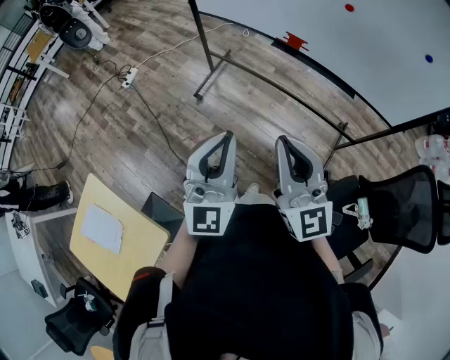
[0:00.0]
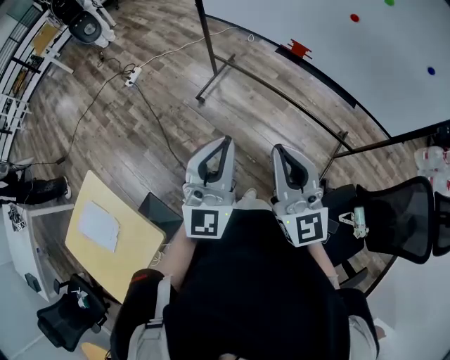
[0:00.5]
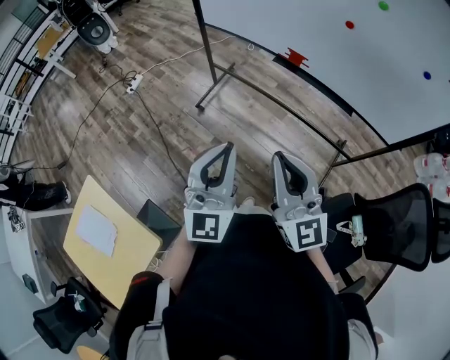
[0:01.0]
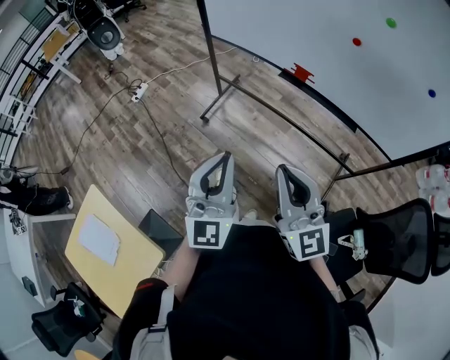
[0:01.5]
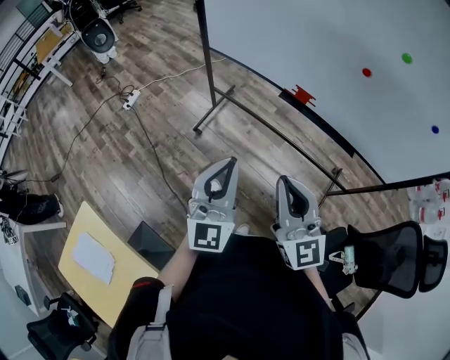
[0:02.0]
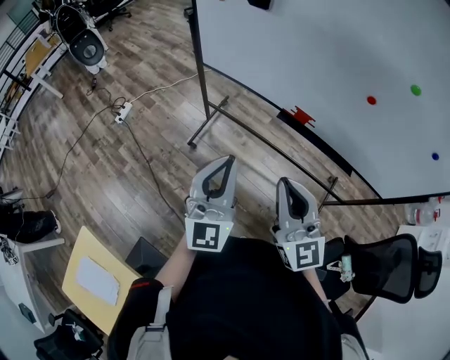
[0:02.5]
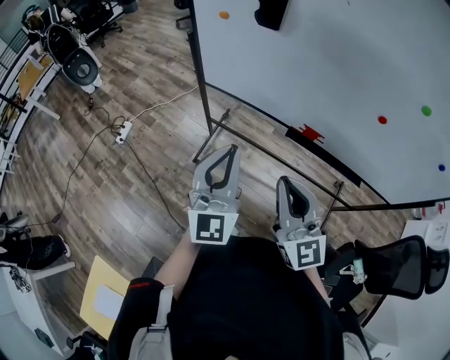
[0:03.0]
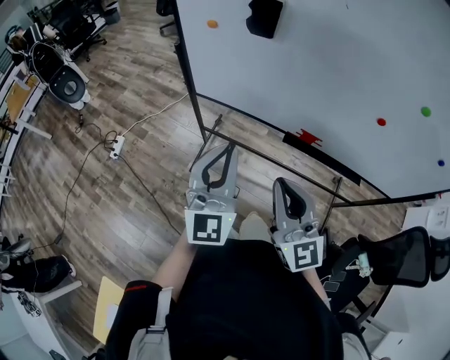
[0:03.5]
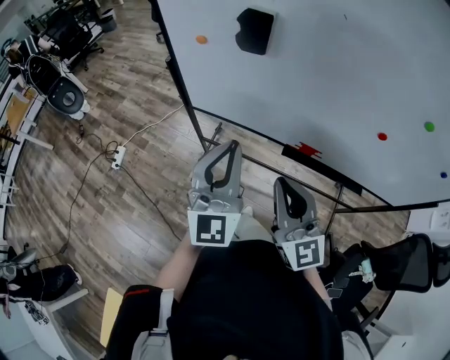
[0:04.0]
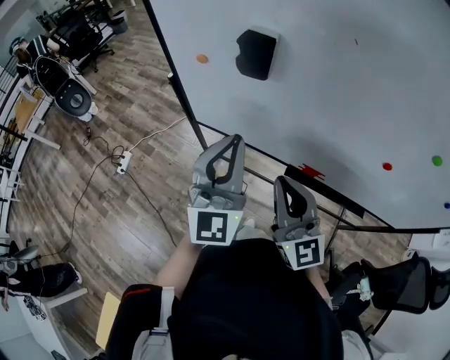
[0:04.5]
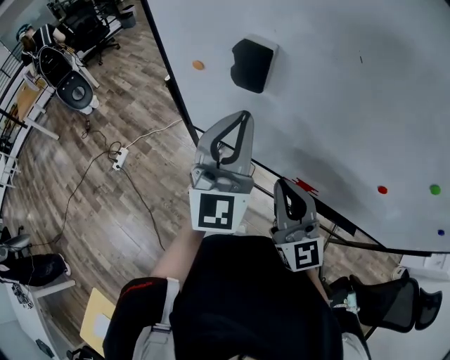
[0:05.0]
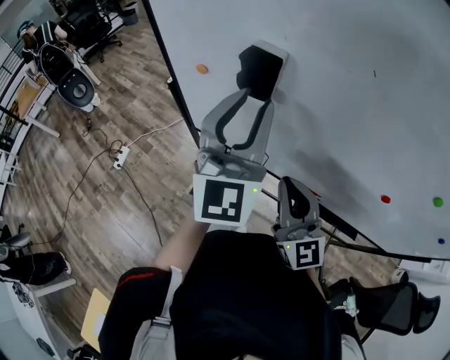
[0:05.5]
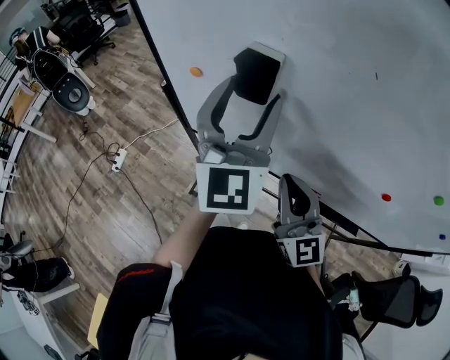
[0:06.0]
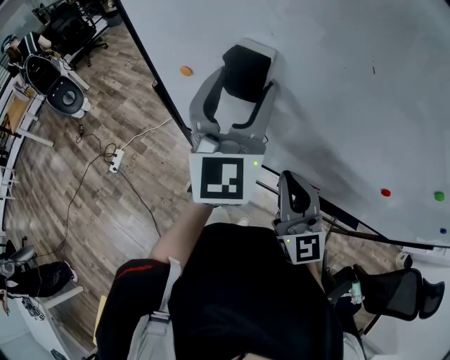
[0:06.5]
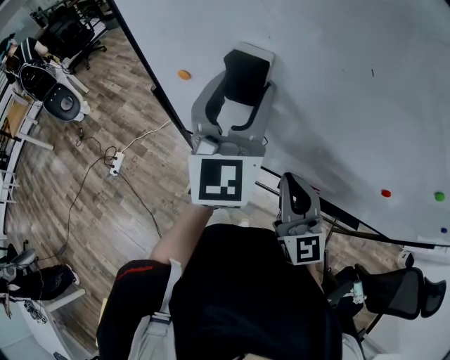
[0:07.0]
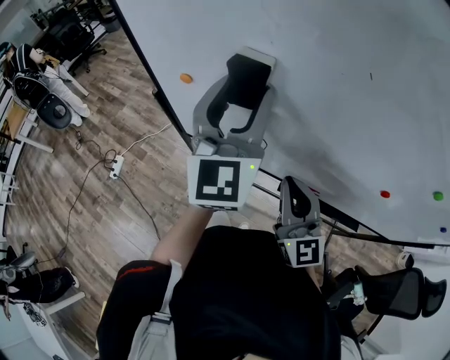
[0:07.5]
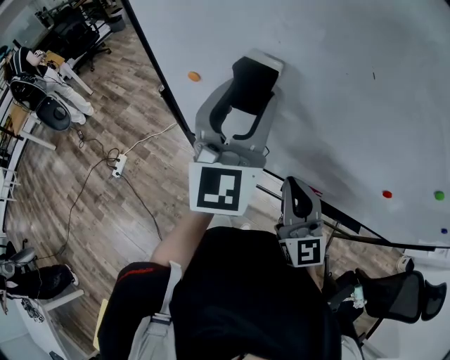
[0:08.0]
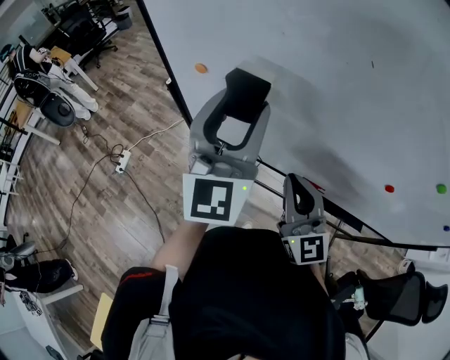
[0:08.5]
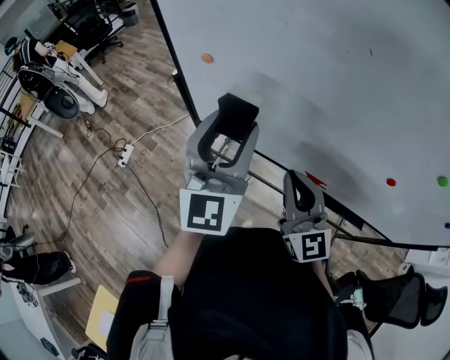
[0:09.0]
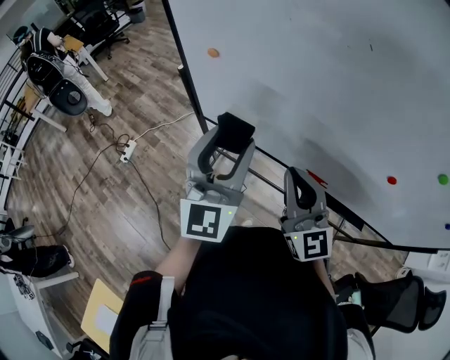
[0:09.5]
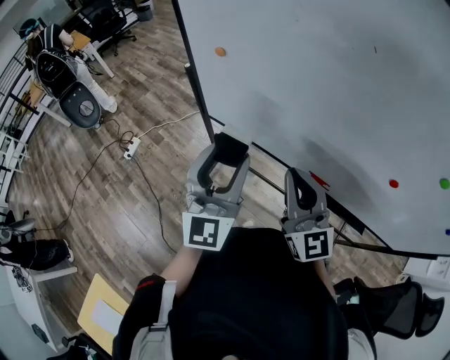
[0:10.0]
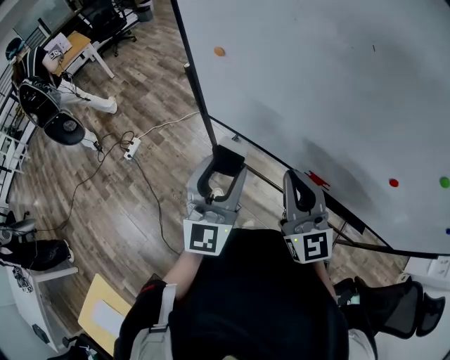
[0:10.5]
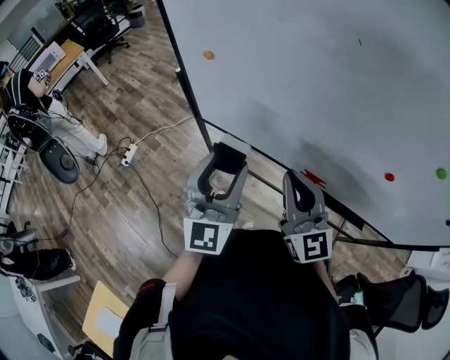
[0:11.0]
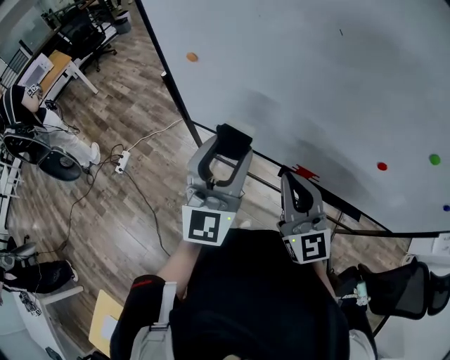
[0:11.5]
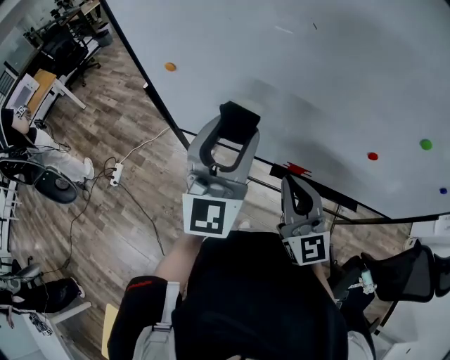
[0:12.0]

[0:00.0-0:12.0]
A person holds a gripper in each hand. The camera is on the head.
0:00.0 to 0:02.0: Both grippers travel together forward, approximately 10 cm.
0:02.0 to 0:04.0: Both grippers travel together forward, about 30 cm.
0:04.0 to 0:06.0: The right gripper shifts some 15 cm forward, while the left gripper travels forward and upward by some 20 cm, and opens its fingers.
0:06.0 to 0:08.0: The grippers move only a little.
0:08.0 to 0:10.0: The left gripper goes approximately 20 cm backward, downward and to the left. Meanwhile the right gripper is displaced backward by some 5 cm.
0:10.0 to 0:12.0: The left gripper shifts approximately 10 cm to the right and upward. The right gripper shifts some 5 cm to the right.

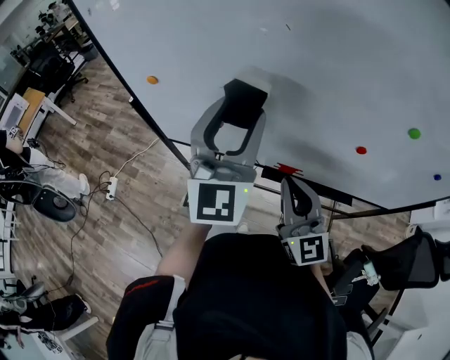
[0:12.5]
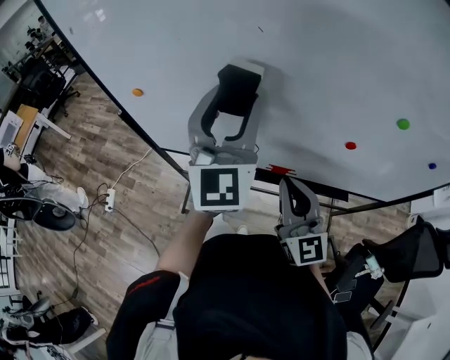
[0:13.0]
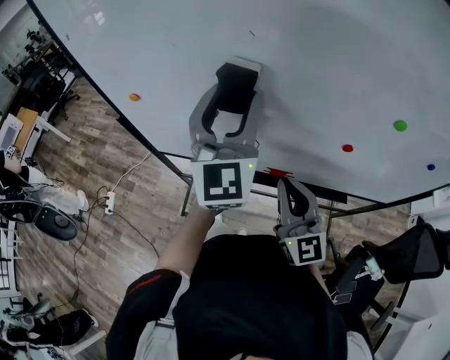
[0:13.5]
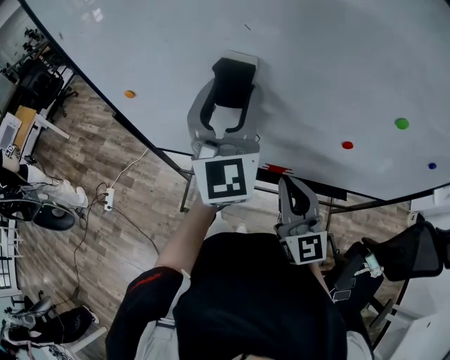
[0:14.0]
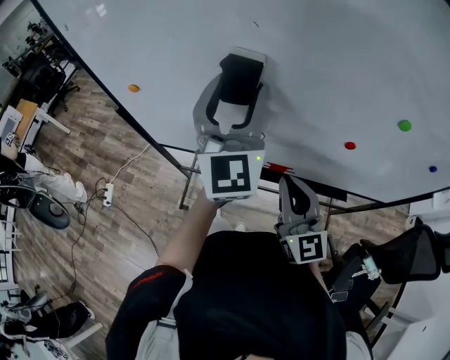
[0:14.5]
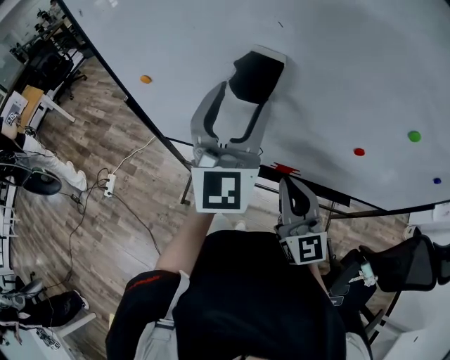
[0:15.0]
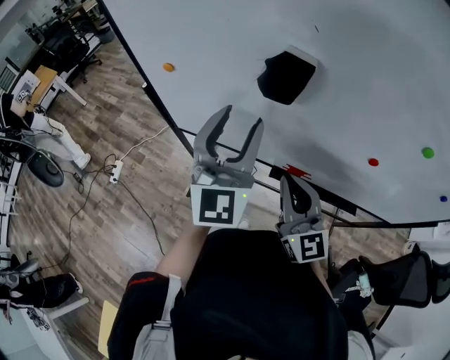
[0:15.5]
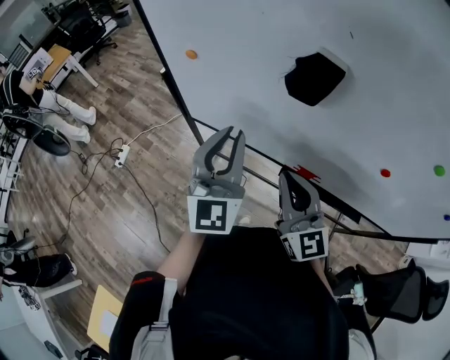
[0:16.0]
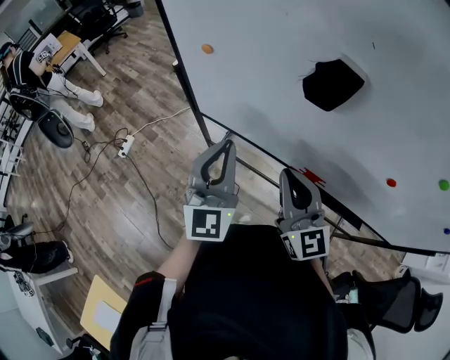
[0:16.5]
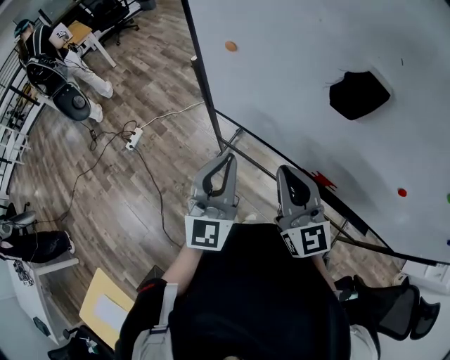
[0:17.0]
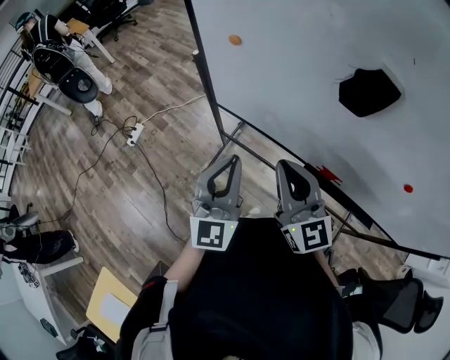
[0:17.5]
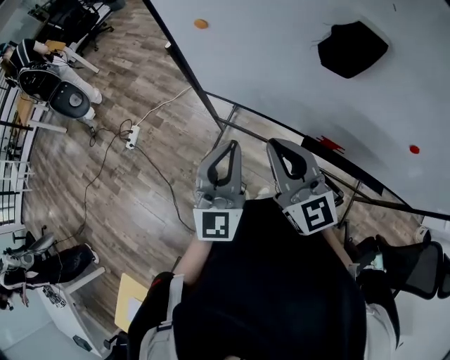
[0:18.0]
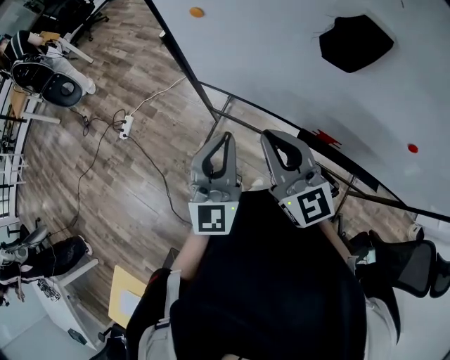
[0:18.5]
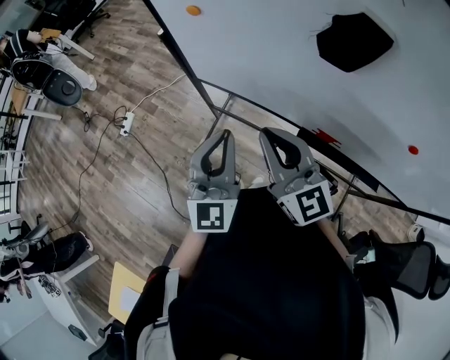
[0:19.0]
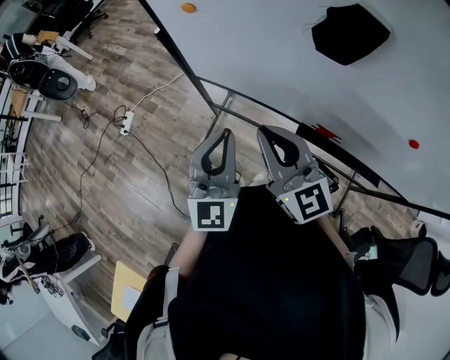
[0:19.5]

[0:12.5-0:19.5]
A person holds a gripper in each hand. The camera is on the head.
0:12.5 to 0:14.5: The left gripper heads forward, covering about 5 cm.
0:14.5 to 0:16.0: The left gripper travels to the left, downward and backward by about 20 cm, and closes, while the right gripper shifts roughly 10 cm to the left.
0:16.0 to 0:17.5: The right gripper moves to the left, some 10 cm, while the left gripper travels to the left and downward by some 10 cm.
0:17.5 to 0:19.5: The grippers make only small movements.

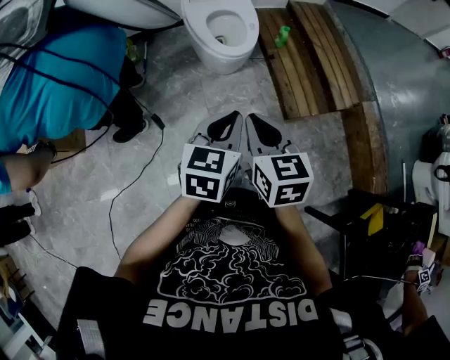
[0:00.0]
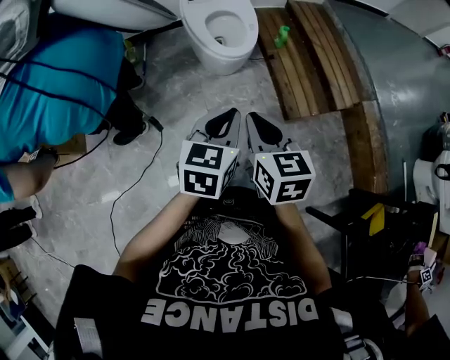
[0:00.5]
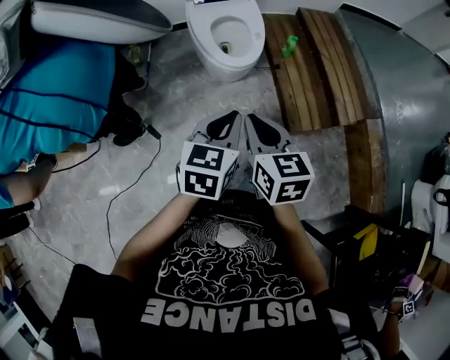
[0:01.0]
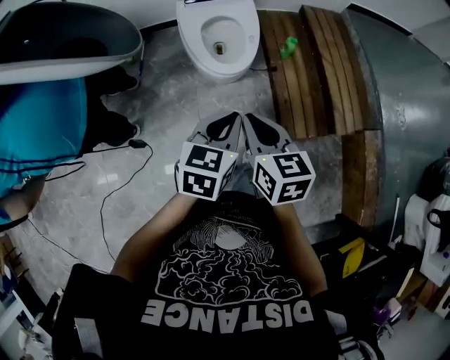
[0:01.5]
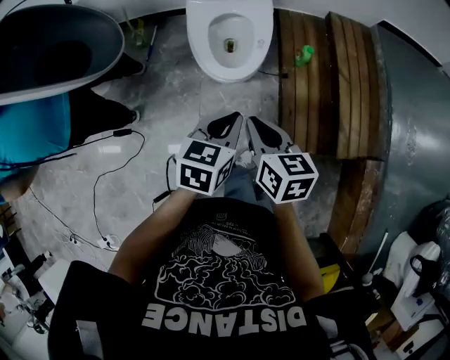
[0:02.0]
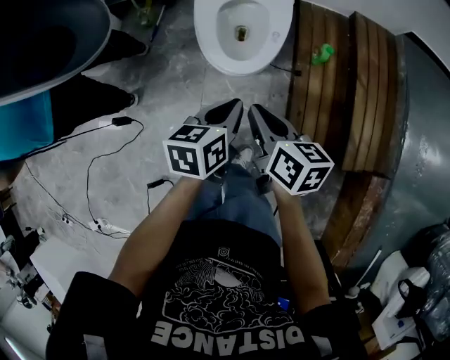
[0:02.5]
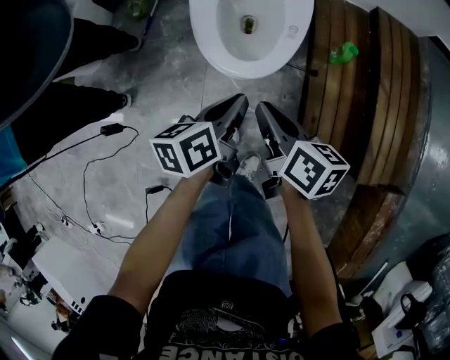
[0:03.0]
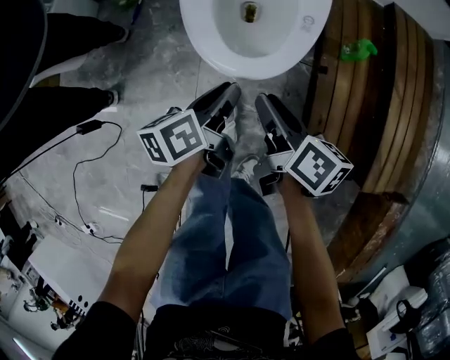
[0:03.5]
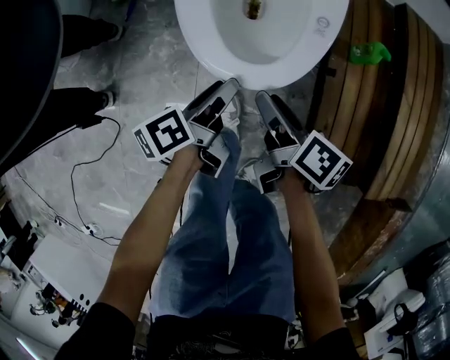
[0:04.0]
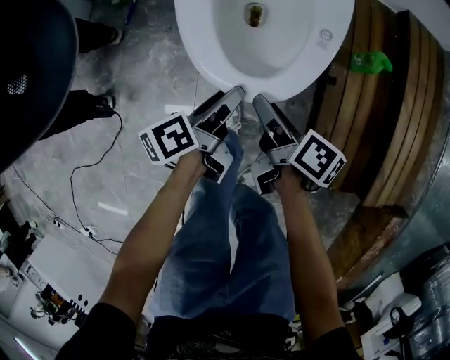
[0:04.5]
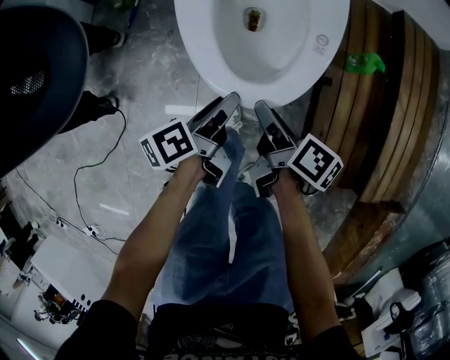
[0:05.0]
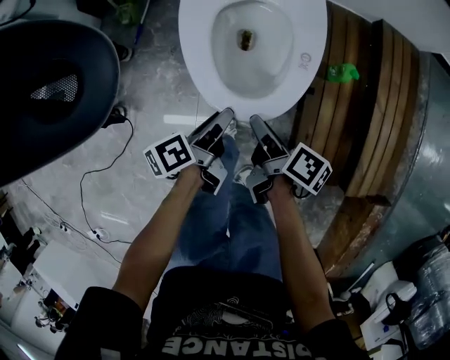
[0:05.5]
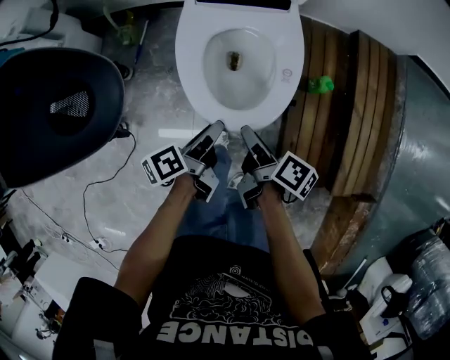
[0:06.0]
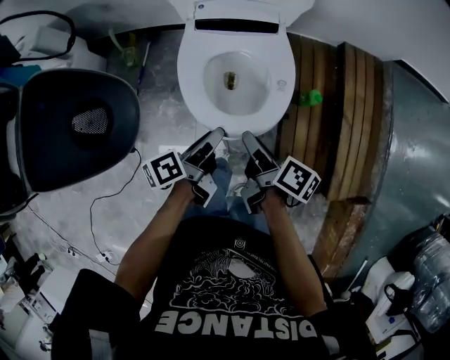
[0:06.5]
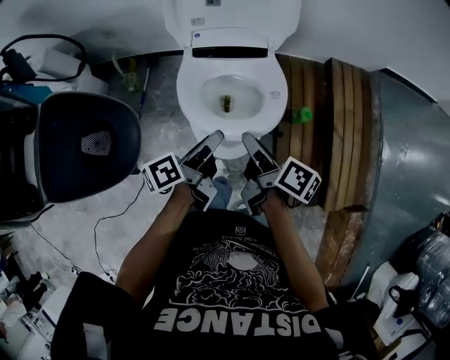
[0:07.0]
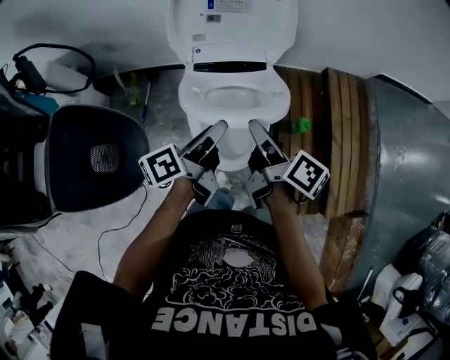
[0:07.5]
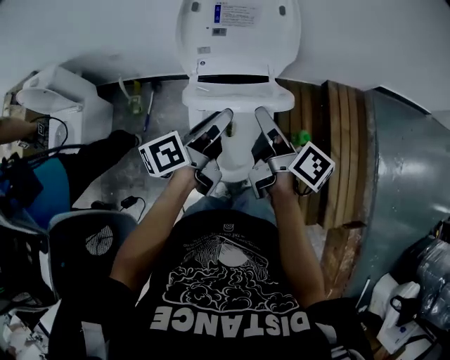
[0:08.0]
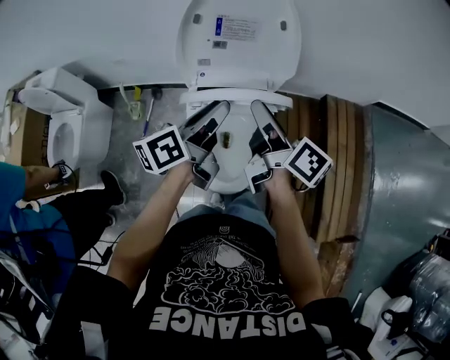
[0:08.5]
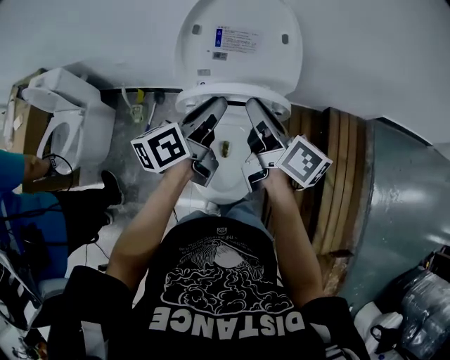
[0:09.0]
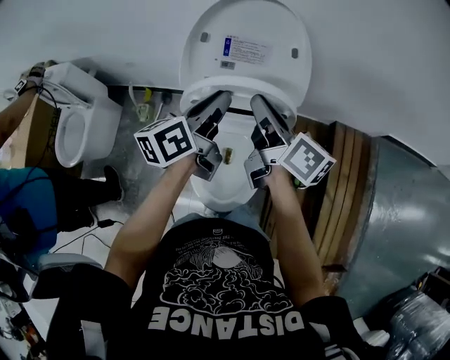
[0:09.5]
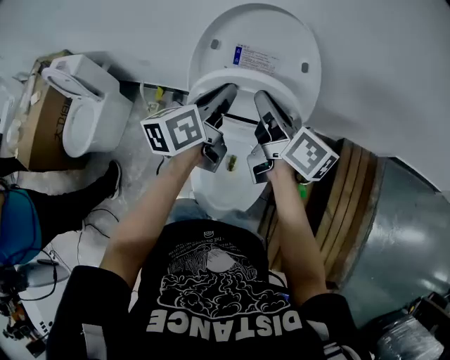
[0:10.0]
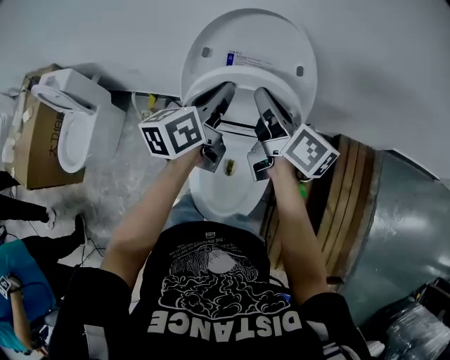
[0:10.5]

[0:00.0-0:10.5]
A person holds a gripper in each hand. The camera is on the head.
0:00.0 to 0:02.0: The grippers both shift forward and to the right by roughly 30 cm. The right gripper swivels roughly 20 degrees.
0:02.0 to 0:04.0: Both grippers travel together downward and forward, about 40 cm. The left gripper rotates around the line of its fingers by some 60 degrees, counterclockwise from behind, and opens its fingers; the right gripper swivels about 40 degrees, and opens.
0:04.0 to 0:06.5: The grippers both shift upward by about 25 cm.
0:06.5 to 0:08.5: Both grippers move forward and upward, some 30 cm. The right gripper changes its angle by approximately 30 degrees. The left gripper rotates approximately 30 degrees.
0:08.5 to 0:10.5: The grippers both shift forward by about 15 cm. The left gripper swivels about 20 degrees, and closes.
